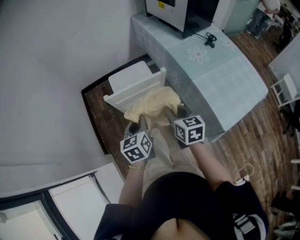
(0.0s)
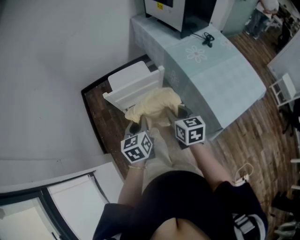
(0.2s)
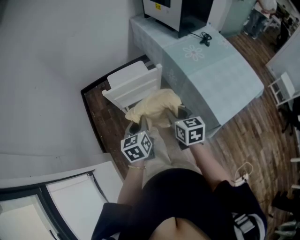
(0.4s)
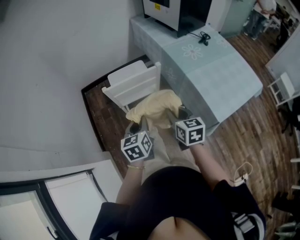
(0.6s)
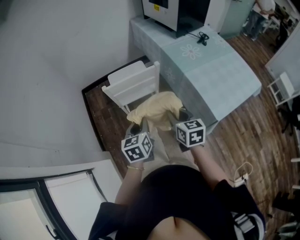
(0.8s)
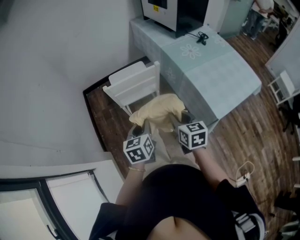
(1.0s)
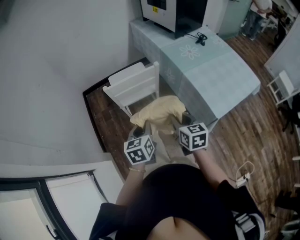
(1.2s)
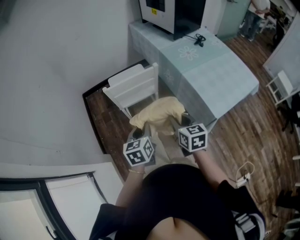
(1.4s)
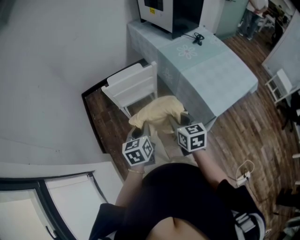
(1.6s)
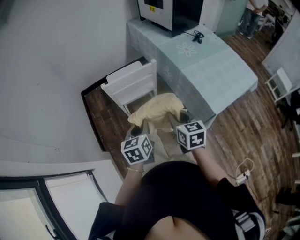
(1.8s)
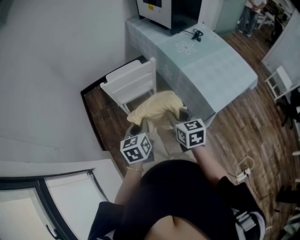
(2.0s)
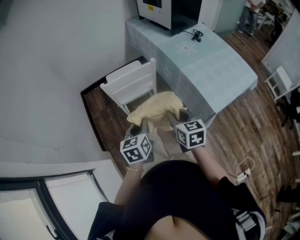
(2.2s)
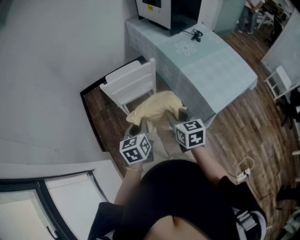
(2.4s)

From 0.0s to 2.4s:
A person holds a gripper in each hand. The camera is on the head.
From 0.0s to 1.2s: The two grippers go roughly 10 cm backward.
From 1.2s to 2.4s: The grippers stay close to where they were, moving slightly.

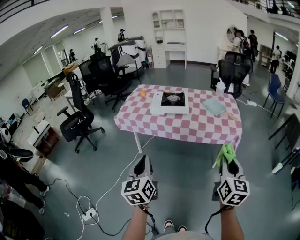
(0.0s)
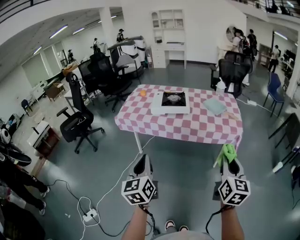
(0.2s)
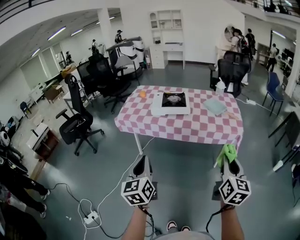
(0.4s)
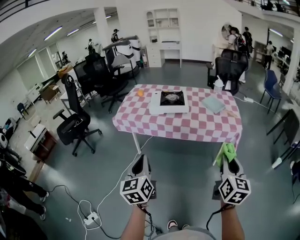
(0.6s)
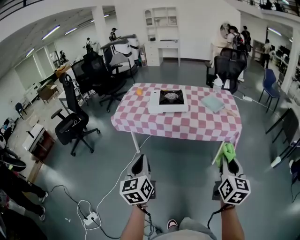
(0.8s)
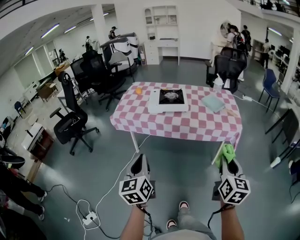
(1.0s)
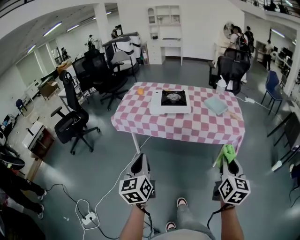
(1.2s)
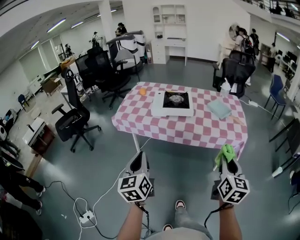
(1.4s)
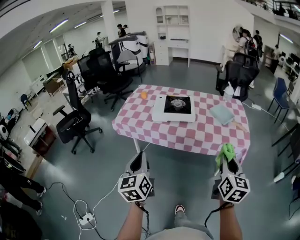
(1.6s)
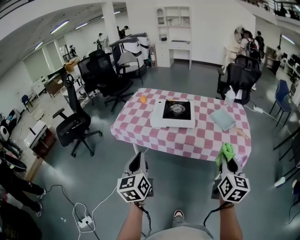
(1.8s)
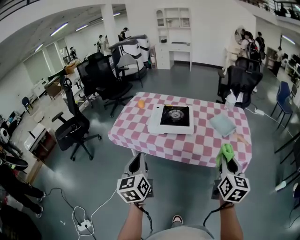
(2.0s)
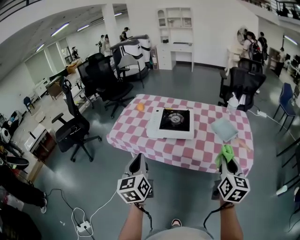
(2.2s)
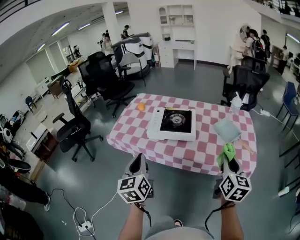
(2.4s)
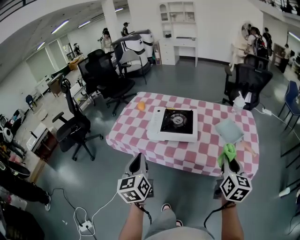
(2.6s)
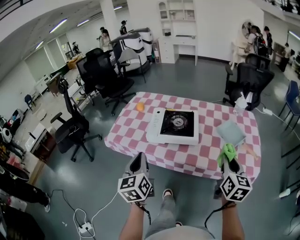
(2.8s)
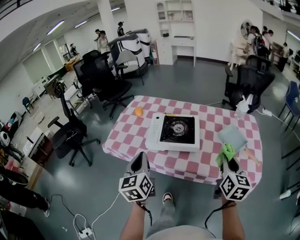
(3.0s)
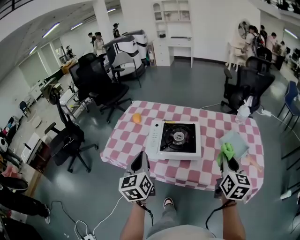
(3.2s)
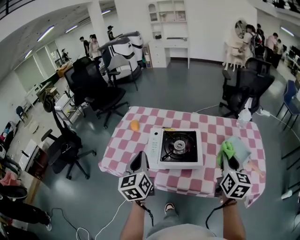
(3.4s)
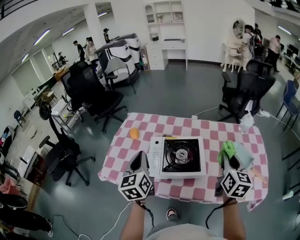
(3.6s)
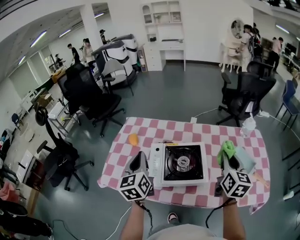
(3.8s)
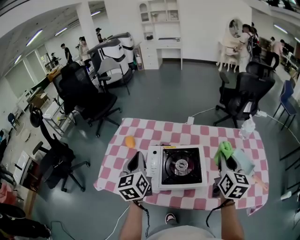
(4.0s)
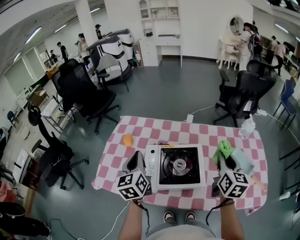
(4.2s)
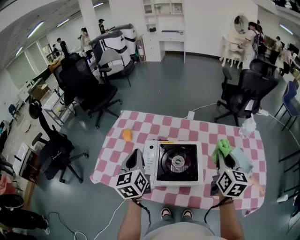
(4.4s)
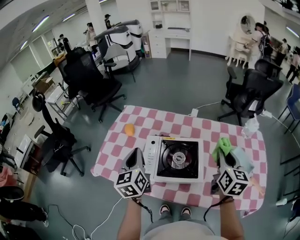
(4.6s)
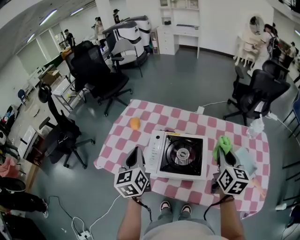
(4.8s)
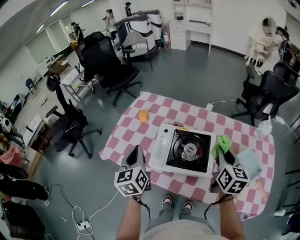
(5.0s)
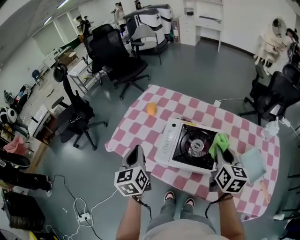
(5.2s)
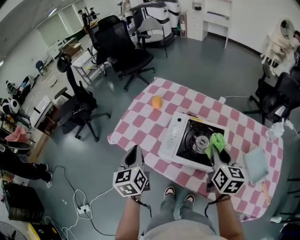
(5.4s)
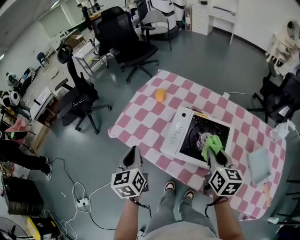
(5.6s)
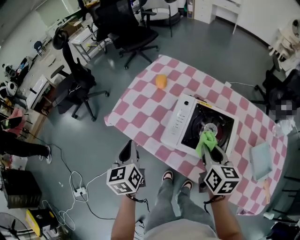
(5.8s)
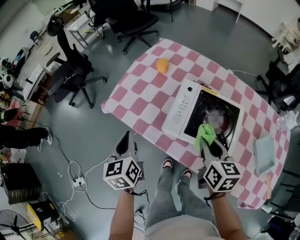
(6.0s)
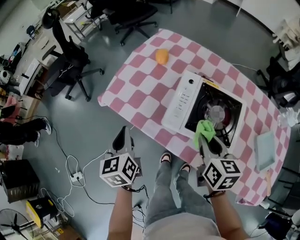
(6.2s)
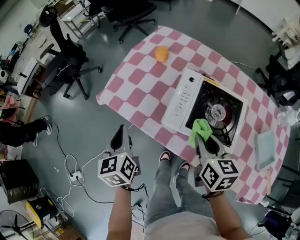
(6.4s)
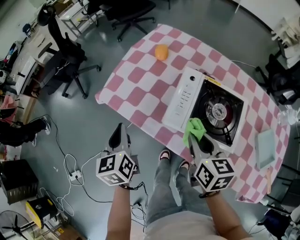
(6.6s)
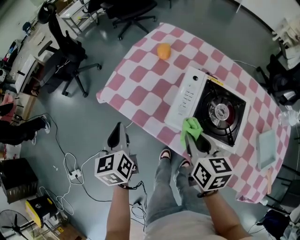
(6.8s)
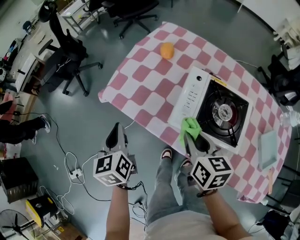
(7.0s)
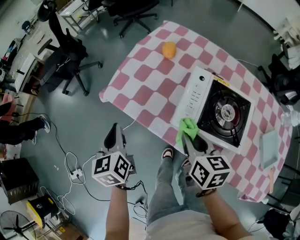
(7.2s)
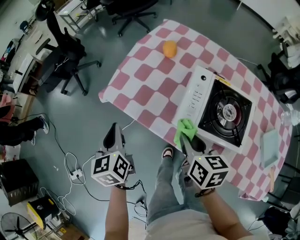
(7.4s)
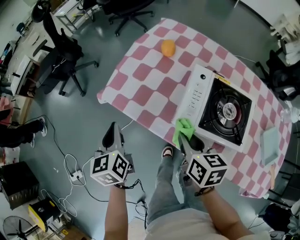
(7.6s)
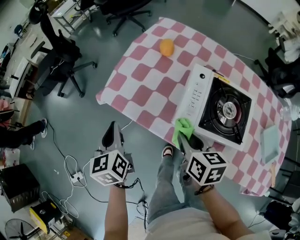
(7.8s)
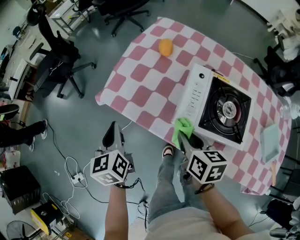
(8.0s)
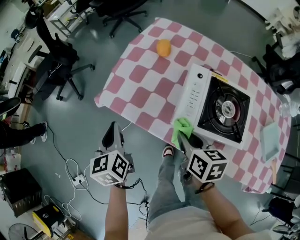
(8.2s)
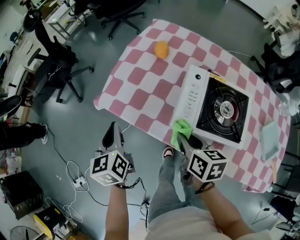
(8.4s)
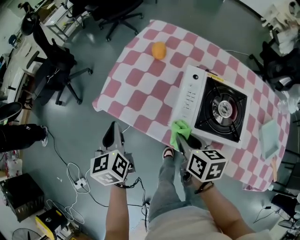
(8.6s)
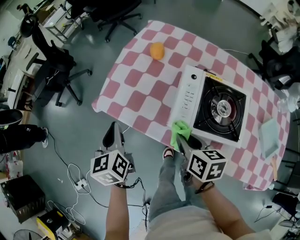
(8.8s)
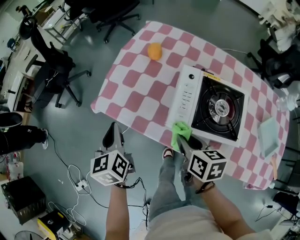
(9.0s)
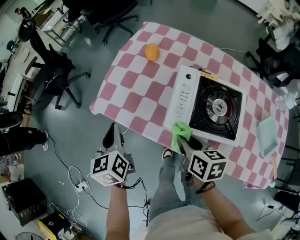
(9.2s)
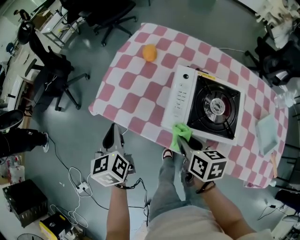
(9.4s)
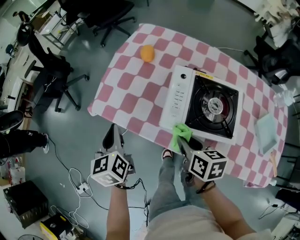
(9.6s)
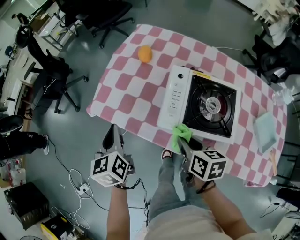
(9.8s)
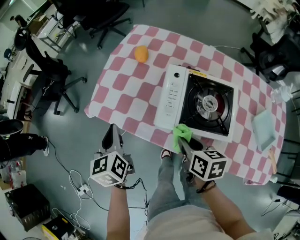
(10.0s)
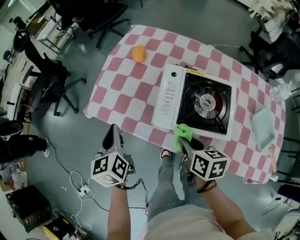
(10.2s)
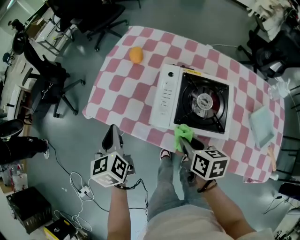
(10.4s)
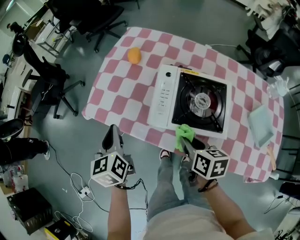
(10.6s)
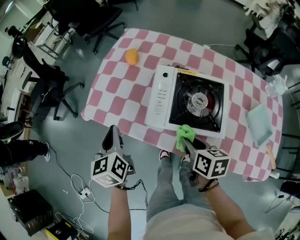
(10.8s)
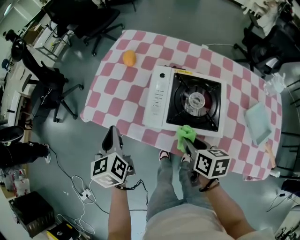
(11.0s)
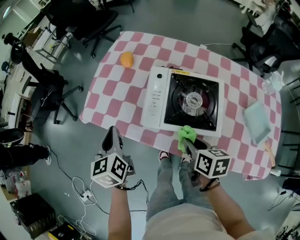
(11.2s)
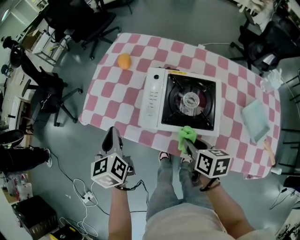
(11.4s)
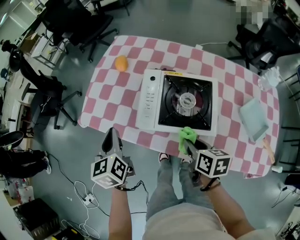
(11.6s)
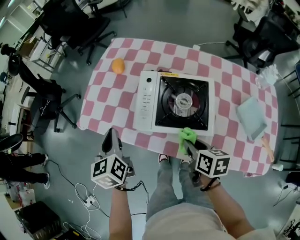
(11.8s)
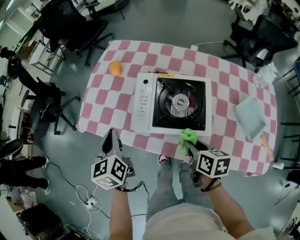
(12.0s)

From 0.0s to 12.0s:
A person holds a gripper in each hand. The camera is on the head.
From 0.0s to 1.6s: Both grippers travel together forward, approximately 15 cm.
From 1.6s to 3.0s: Both grippers travel together forward, some 30 cm.
From 3.0s to 4.4s: Both grippers move forward, roughly 25 cm.
From 4.4s to 6.0s: The left gripper ends up some 25 cm from where it was, and turns by some 30 degrees. Meanwhile the right gripper changes place by roughly 25 cm, and swivels some 40 degrees.
From 6.0s to 7.6s: The right gripper travels to the left by some 15 cm; the left gripper is displaced to the left by about 10 cm.
From 7.6s to 9.0s: The grippers make only small movements.
From 9.0s to 10.4s: Both grippers travel together to the right, roughly 5 cm.
From 10.4s to 12.0s: The left gripper travels to the right by roughly 10 cm, while the right gripper moves to the right and backward, roughly 10 cm.

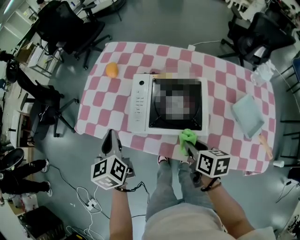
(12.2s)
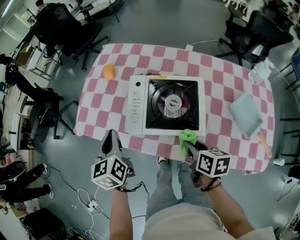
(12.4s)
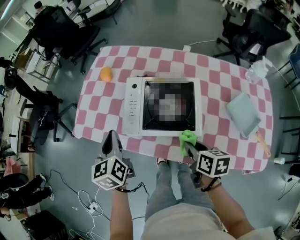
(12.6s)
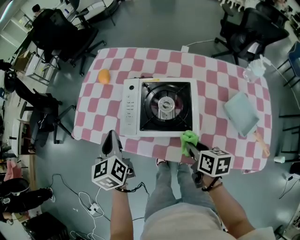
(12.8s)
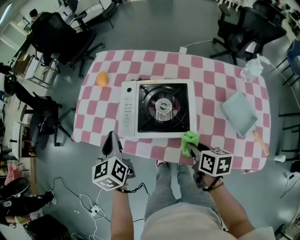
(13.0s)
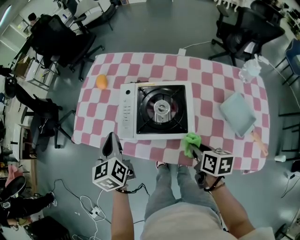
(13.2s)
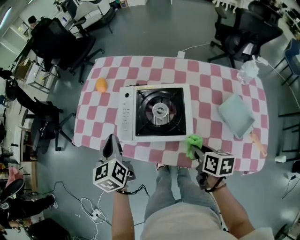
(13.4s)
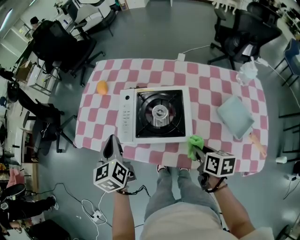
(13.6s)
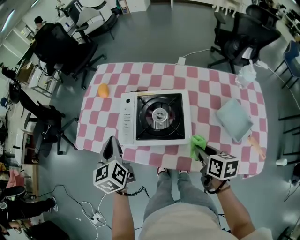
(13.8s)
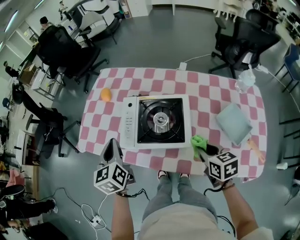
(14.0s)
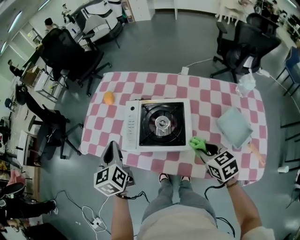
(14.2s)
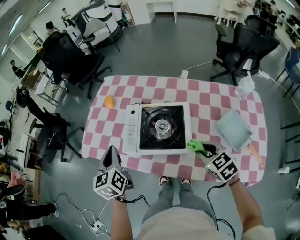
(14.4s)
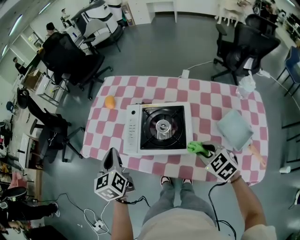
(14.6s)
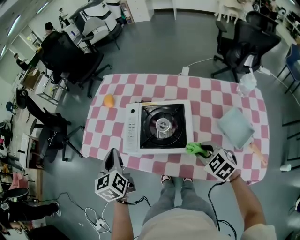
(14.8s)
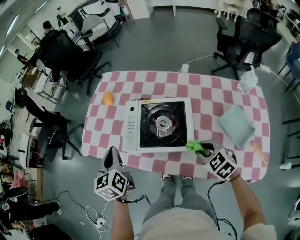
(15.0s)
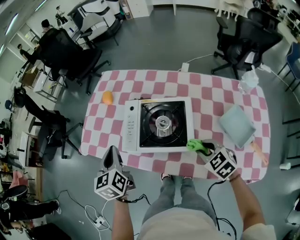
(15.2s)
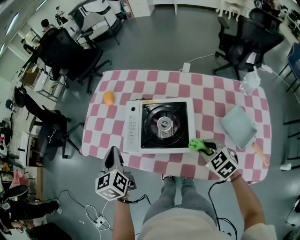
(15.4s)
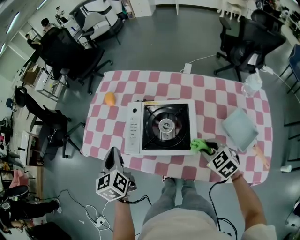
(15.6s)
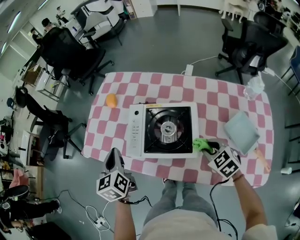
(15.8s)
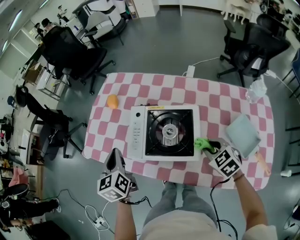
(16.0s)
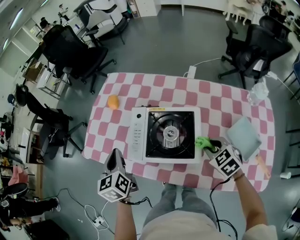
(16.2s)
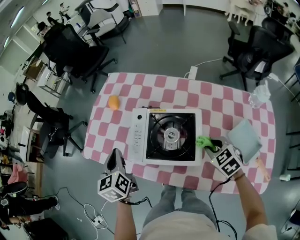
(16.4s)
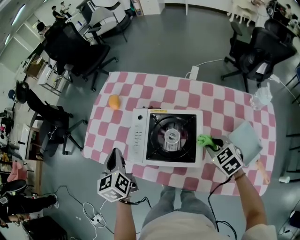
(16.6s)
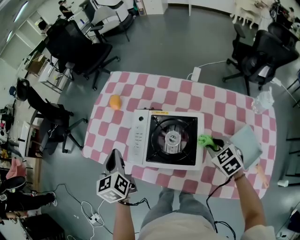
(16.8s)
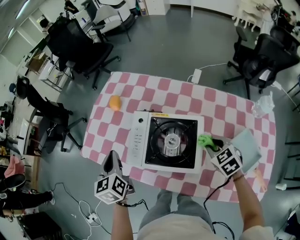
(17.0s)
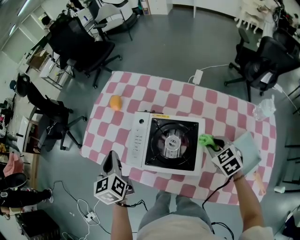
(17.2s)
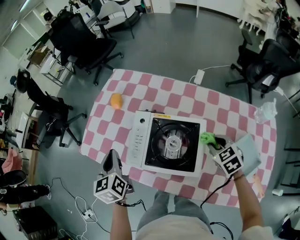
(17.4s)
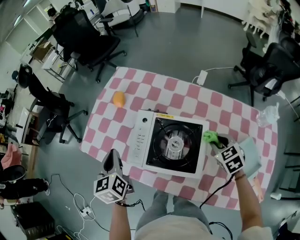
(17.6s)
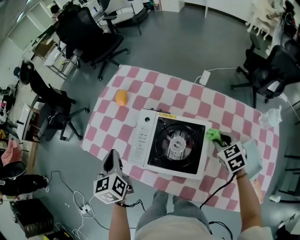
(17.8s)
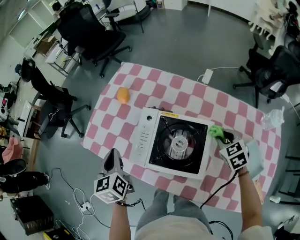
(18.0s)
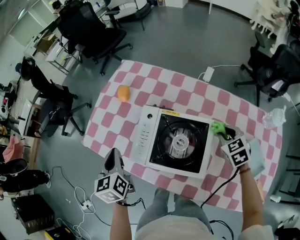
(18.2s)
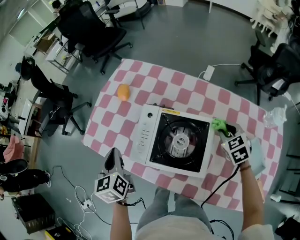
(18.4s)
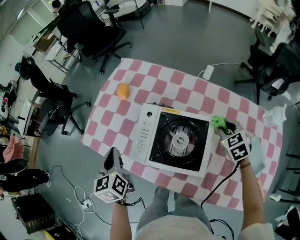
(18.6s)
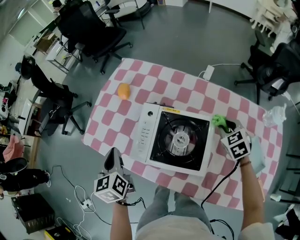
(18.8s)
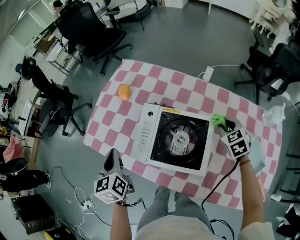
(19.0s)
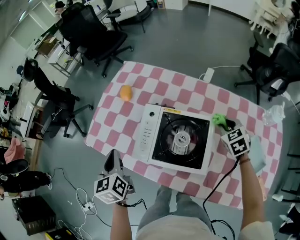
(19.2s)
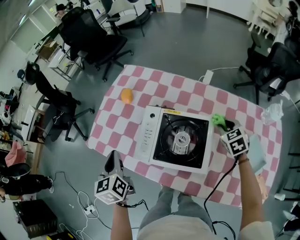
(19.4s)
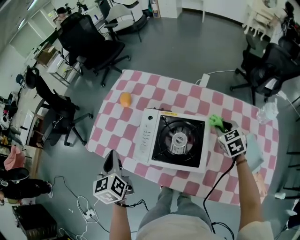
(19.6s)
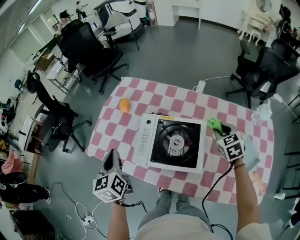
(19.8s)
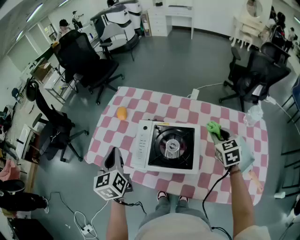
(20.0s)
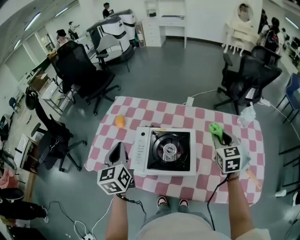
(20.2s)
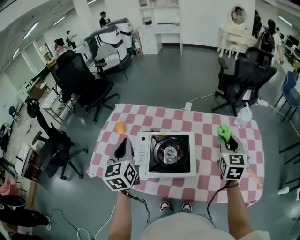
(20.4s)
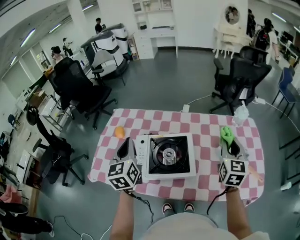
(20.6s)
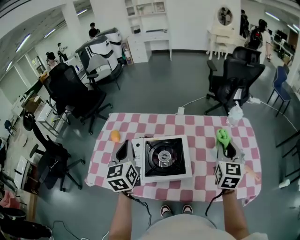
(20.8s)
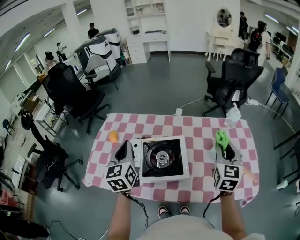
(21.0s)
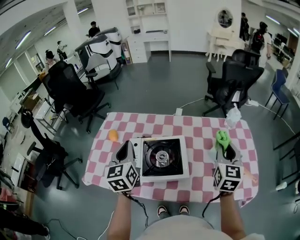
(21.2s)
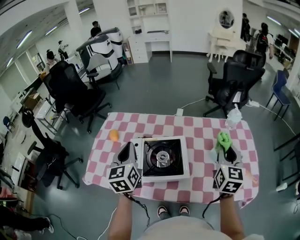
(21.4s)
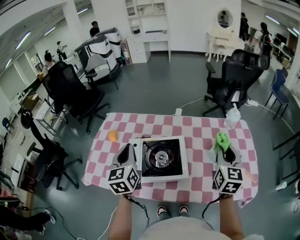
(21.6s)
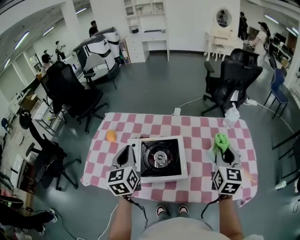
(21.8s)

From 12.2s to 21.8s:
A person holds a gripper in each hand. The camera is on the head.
From 12.2s to 13.8s: The left gripper shifts some 5 cm to the right. The right gripper shifts approximately 10 cm to the right.
From 13.8s to 15.4s: The right gripper rotates around the line of its fingers by roughly 60 degrees, counterclockwise from behind.
From 15.4s to 17.0s: The right gripper travels forward and to the right by about 10 cm, while the left gripper moves forward, about 5 cm.
From 17.0s to 18.6s: The right gripper shifts some 10 cm forward and to the right.
From 18.6s to 20.2s: The left gripper moves upward and to the right, some 15 cm, and swivels some 20 degrees, while the right gripper travels upward and backward by approximately 15 cm, and swivels approximately 40 degrees.
From 20.2s to 21.8s: The right gripper travels backward, upward and to the right by approximately 15 cm, and swivels approximately 30 degrees. The left gripper heads to the right, covering approximately 5 cm.
